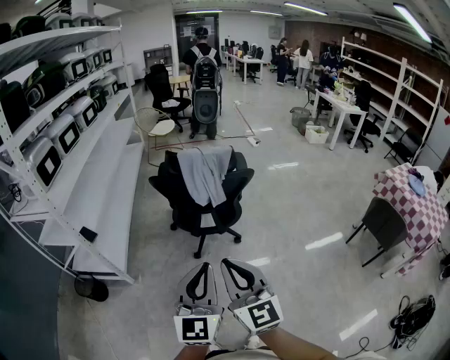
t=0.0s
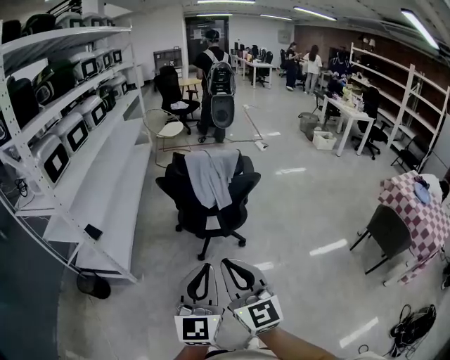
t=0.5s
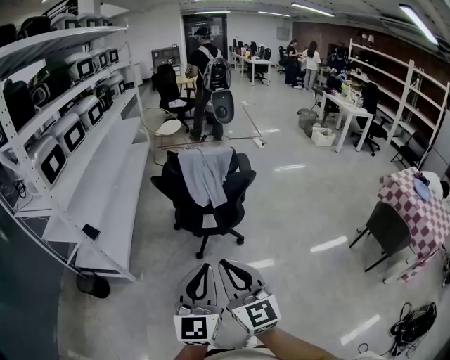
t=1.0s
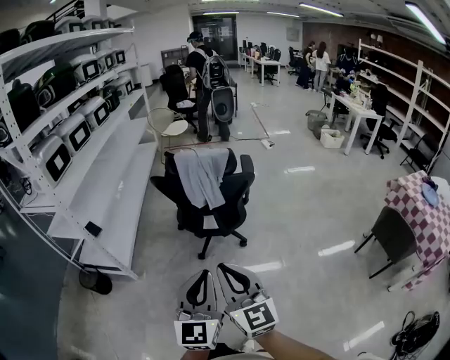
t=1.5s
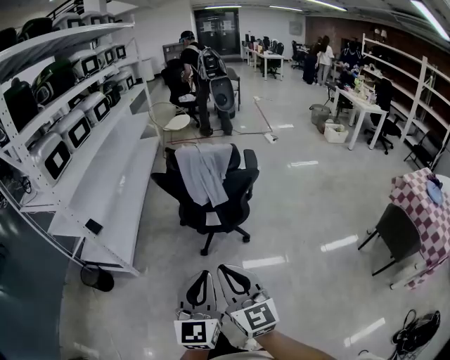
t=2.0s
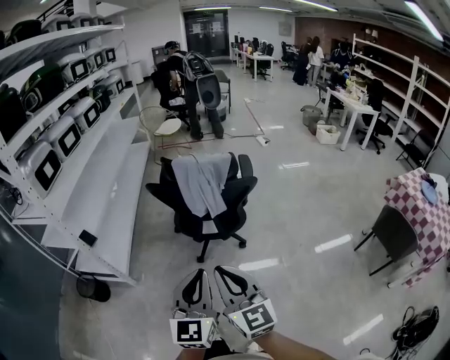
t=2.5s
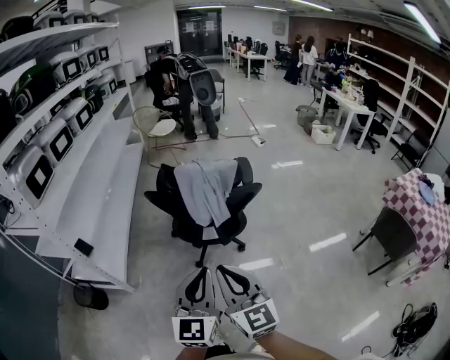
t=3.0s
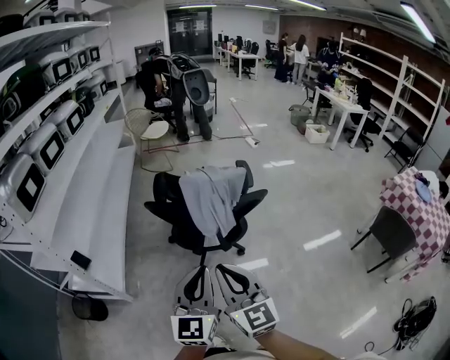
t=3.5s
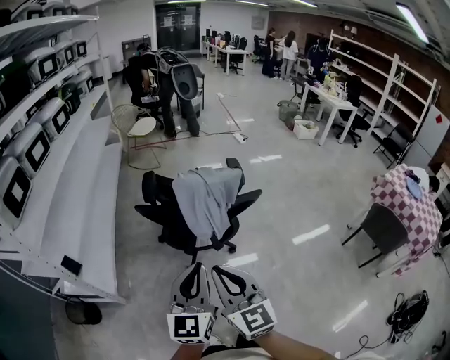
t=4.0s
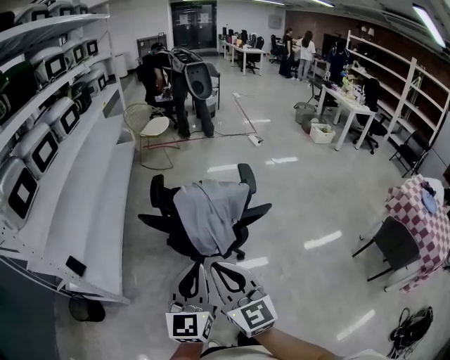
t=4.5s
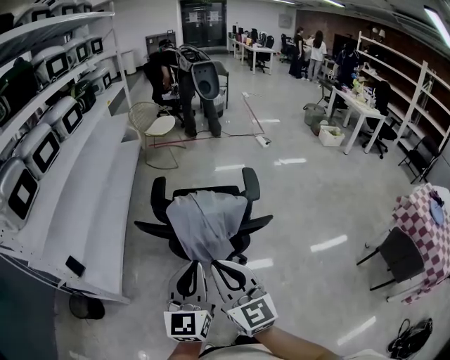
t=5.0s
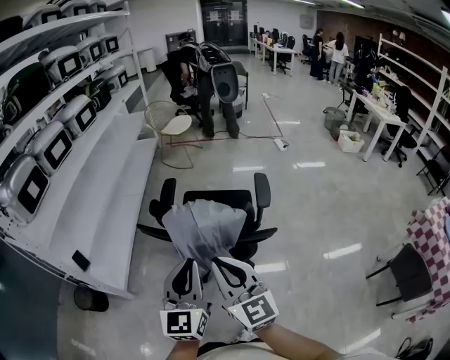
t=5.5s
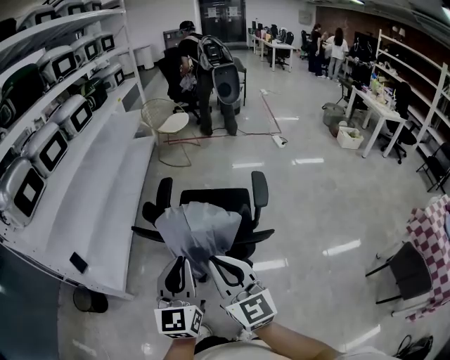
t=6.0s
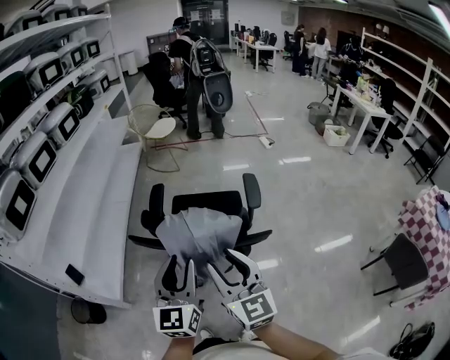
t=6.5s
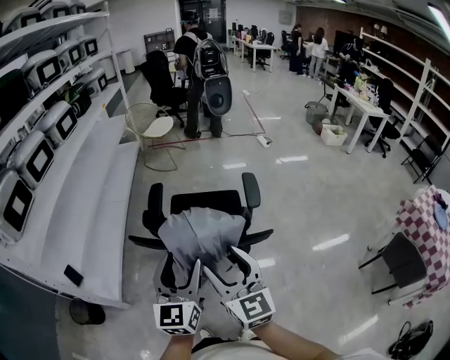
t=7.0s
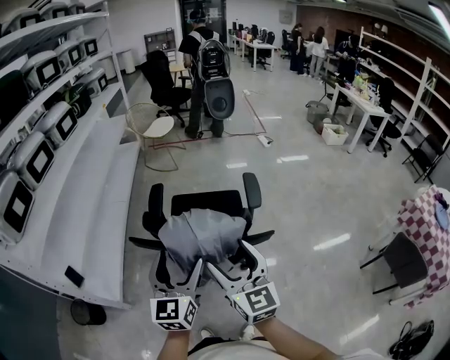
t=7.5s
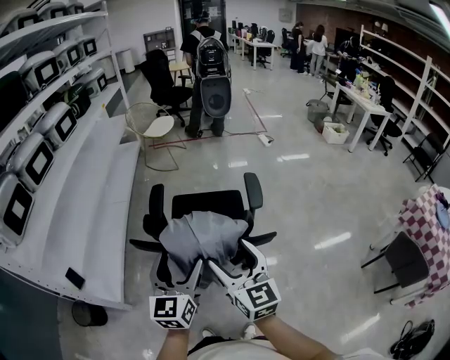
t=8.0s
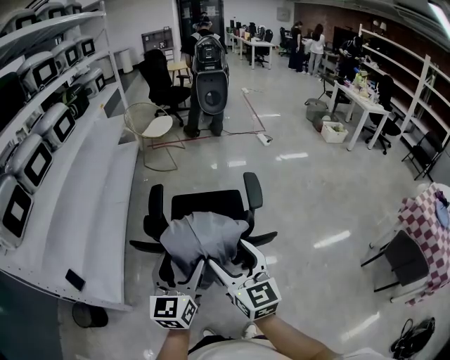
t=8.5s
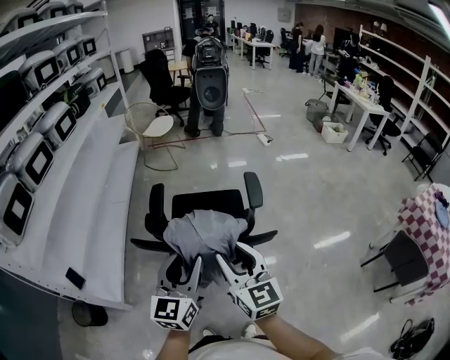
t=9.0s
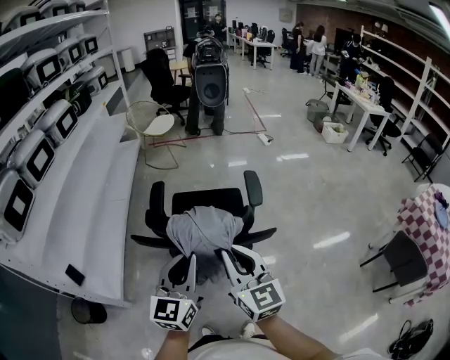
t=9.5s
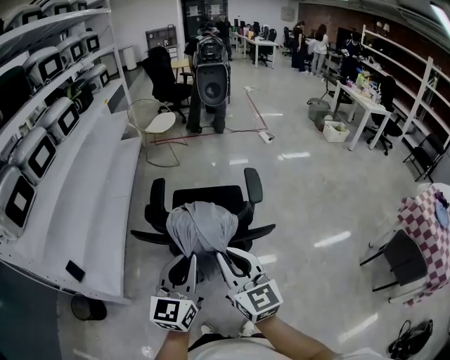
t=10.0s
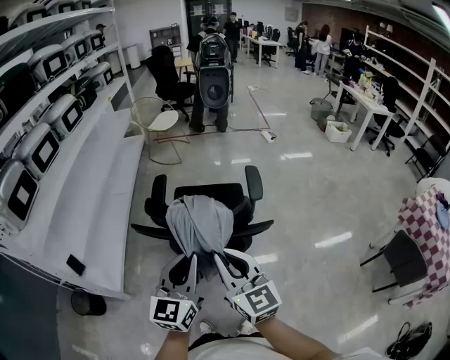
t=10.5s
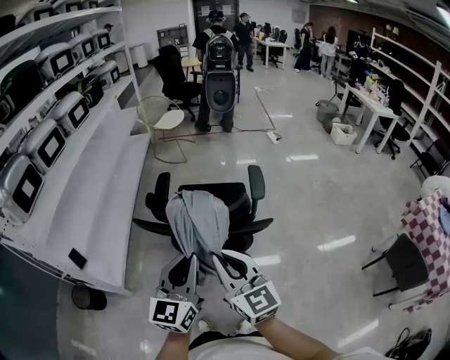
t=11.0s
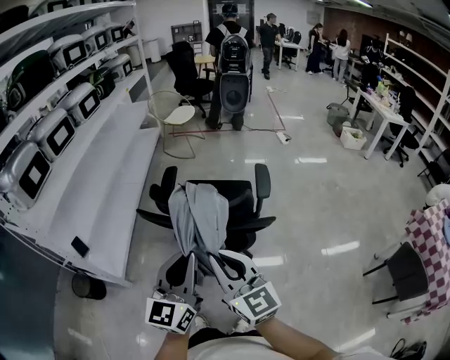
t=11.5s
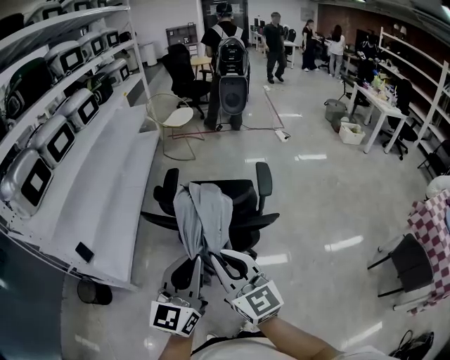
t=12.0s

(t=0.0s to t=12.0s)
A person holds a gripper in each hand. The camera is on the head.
t=0.0s - t=2.0s: The right gripper ends up some 5 cm from where it was. The left gripper travels to the right by some 5 cm.
t=2.0s - t=4.0s: The right gripper travels forward and to the left by some 20 cm. Meanwhile the left gripper heads forward, covering some 20 cm.
t=4.0s - t=6.0s: The grippers both shift forward and to the right by approximately 20 cm.
t=6.0s - t=8.0s: The grippers both shift forward by approximately 5 cm. The left gripper opens. The right gripper opens.
t=8.0s - t=10.0s: The right gripper closes up. The left gripper moves about 5 cm, and closes its fingers.
t=10.0s - t=12.0s: The two grippers go about 5 cm backward.

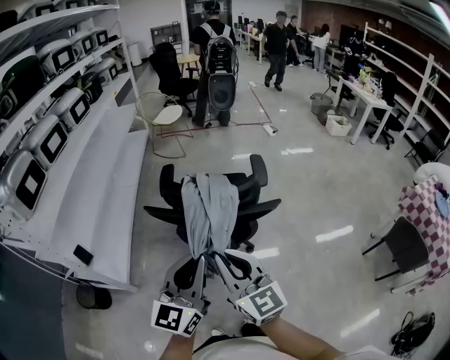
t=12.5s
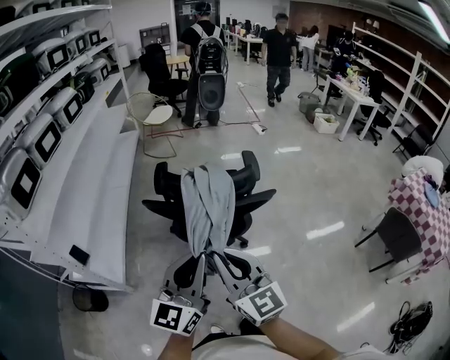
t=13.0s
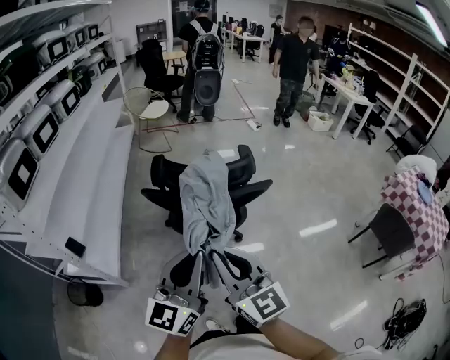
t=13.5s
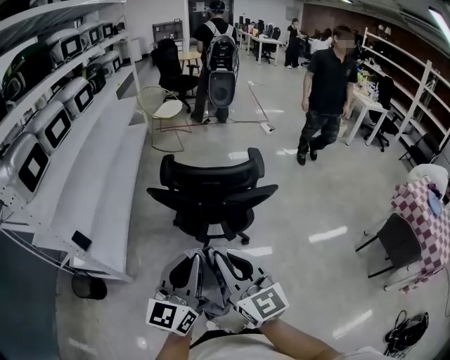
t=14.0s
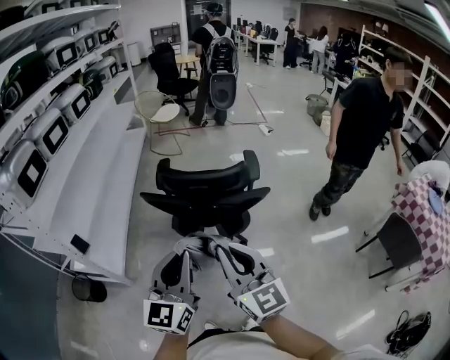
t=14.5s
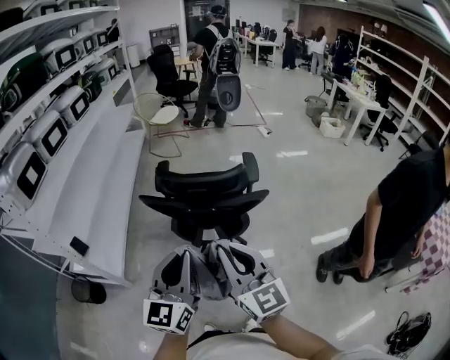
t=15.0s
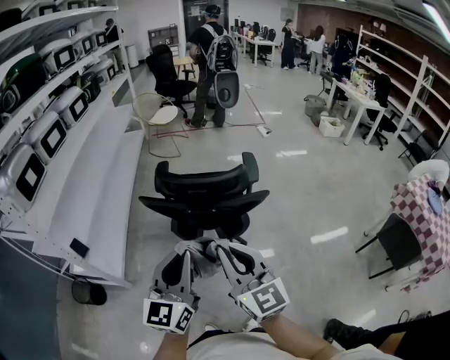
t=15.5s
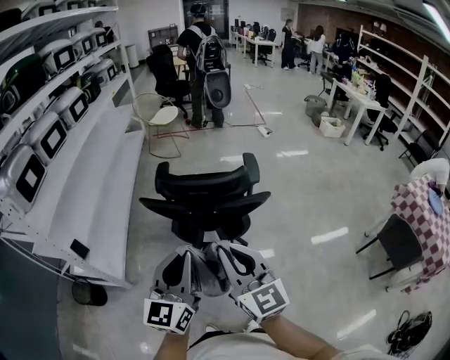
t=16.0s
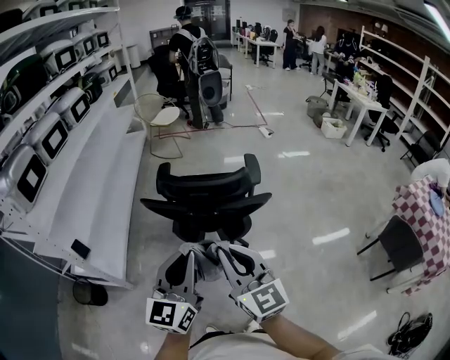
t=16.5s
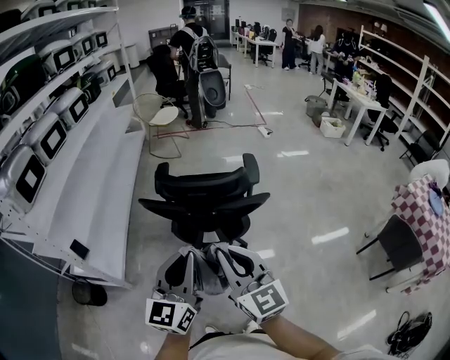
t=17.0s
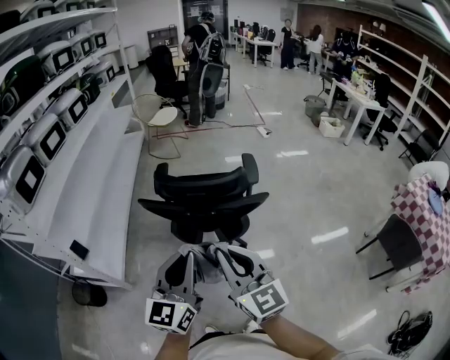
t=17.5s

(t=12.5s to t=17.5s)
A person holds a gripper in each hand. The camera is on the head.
t=12.5s - t=15.0s: The right gripper heads backward, covering some 5 cm.
t=15.0s - t=17.5s: The grippers make only small movements.

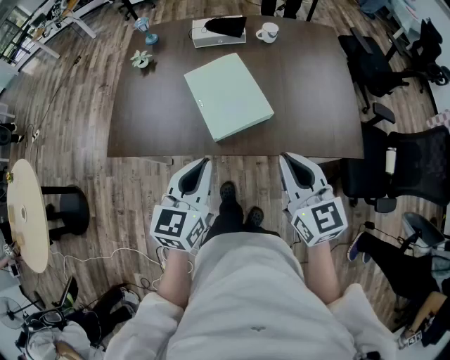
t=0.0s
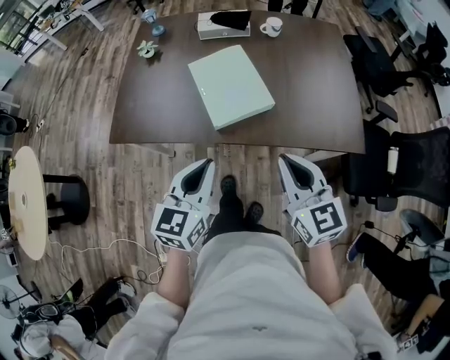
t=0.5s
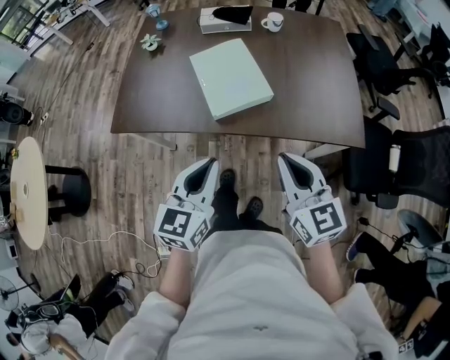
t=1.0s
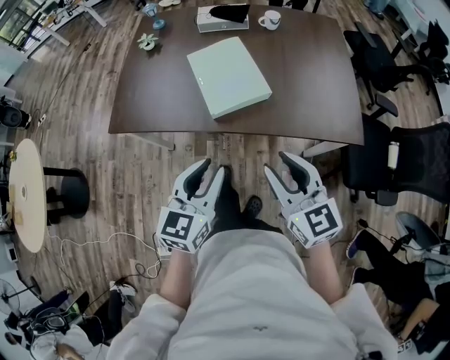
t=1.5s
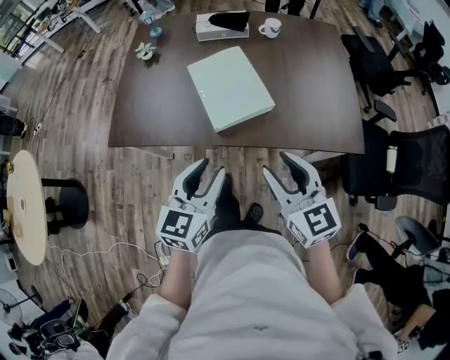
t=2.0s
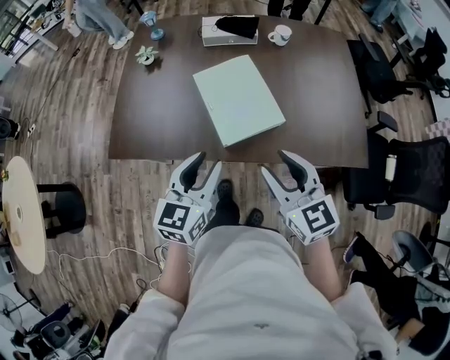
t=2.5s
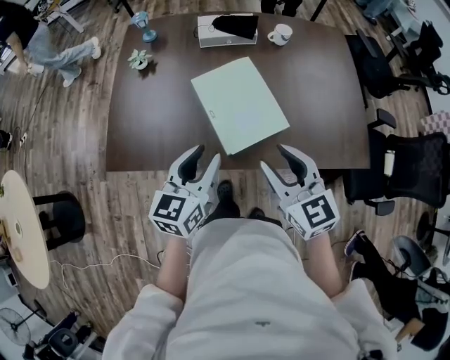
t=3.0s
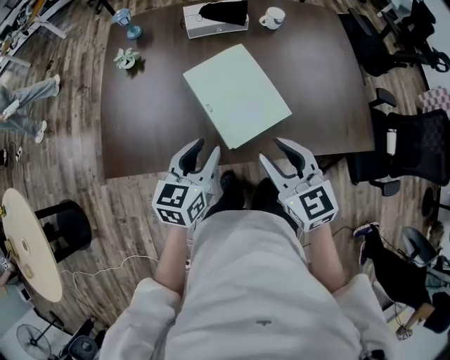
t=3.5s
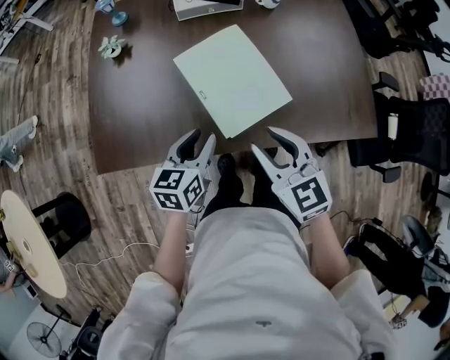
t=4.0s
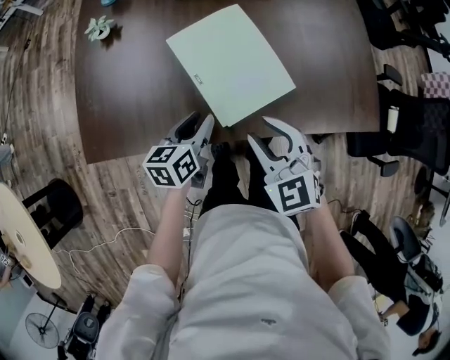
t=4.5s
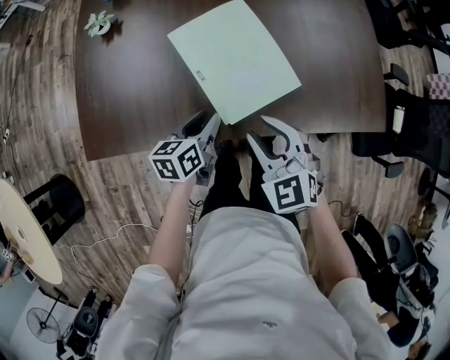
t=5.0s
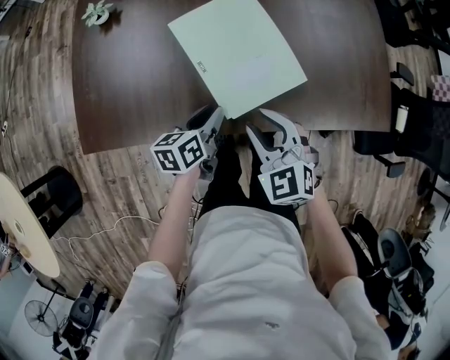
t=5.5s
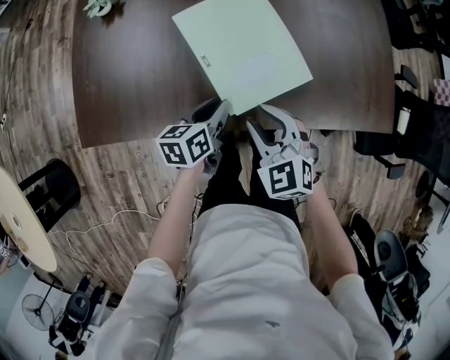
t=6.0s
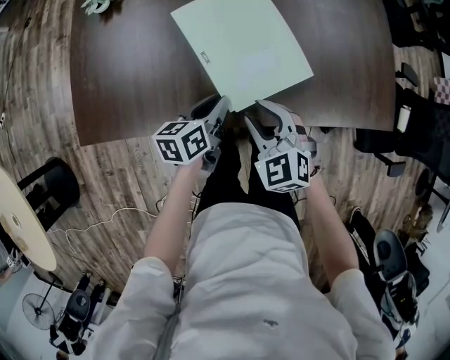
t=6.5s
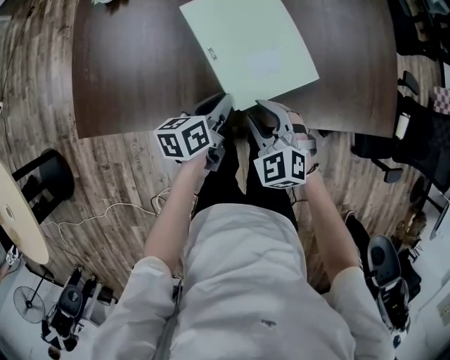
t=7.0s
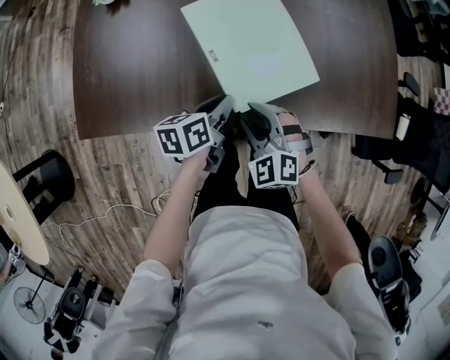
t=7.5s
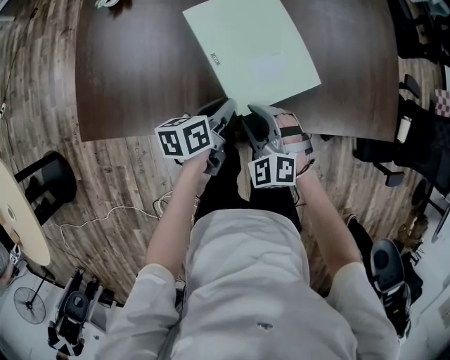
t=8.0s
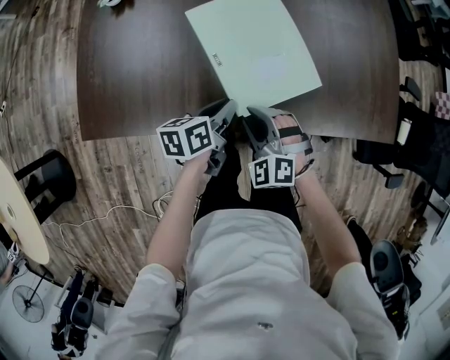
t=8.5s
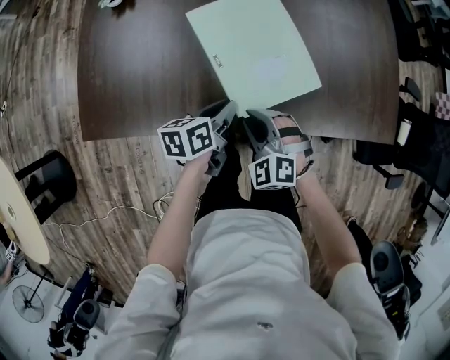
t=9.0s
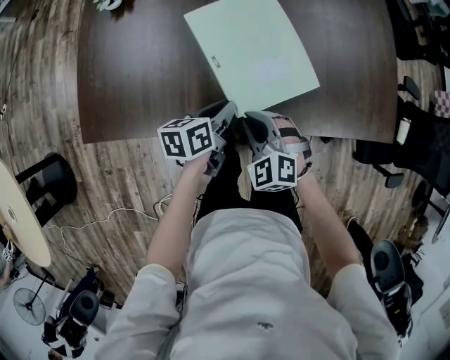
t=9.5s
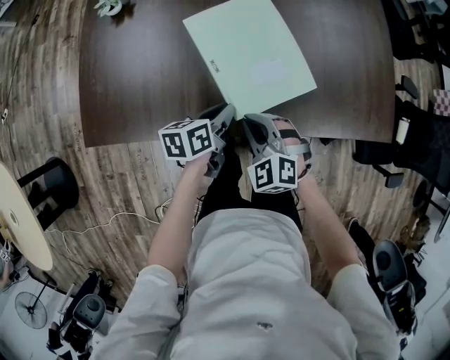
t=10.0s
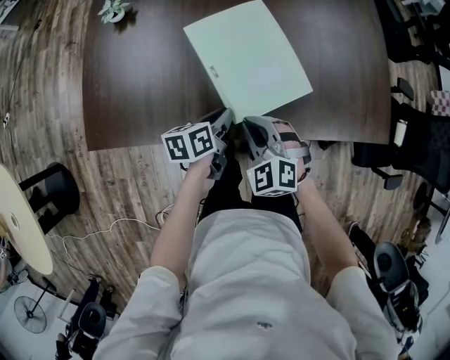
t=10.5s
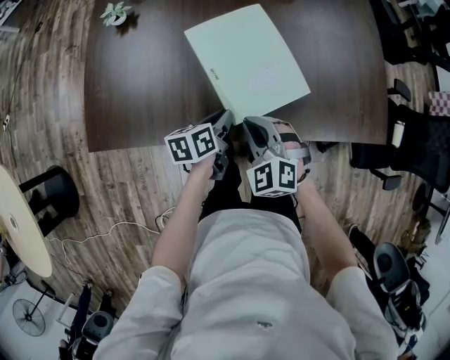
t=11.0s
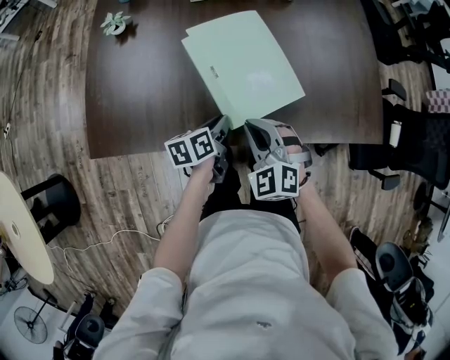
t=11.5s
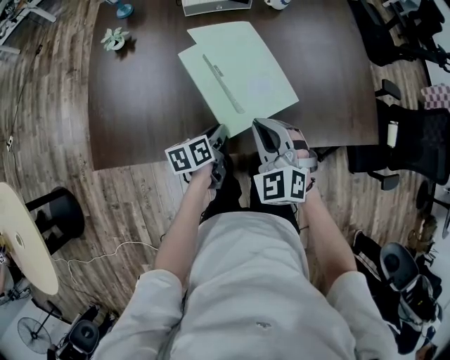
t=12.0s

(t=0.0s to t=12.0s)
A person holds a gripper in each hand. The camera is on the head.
t=0.0s - t=2.0s: The right gripper opens up; the left gripper opens.
t=2.0s - t=4.0s: The left gripper travels forward, downward and to the left by roughly 25 cm, and swivels approximately 20 degrees. The right gripper moves forward, to the left and downward, approximately 20 cm.
t=4.0s - t=6.0s: The grippers both shift downward by approximately 10 cm. The right gripper rotates roughly 20 degrees. The left gripper turns by roughly 20 degrees.
t=6.0s - t=8.0s: The right gripper travels downward by roughly 5 cm, and turns by approximately 20 degrees.
t=8.0s - t=10.0s: The right gripper closes up.
t=10.0s - t=12.0s: The right gripper is displaced upward by approximately 10 cm.
